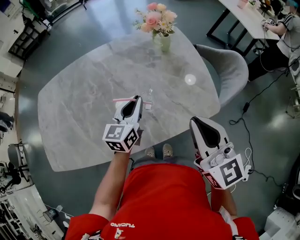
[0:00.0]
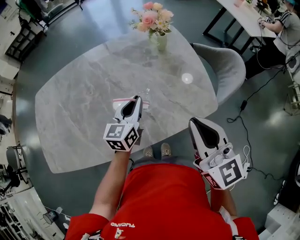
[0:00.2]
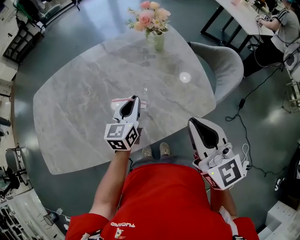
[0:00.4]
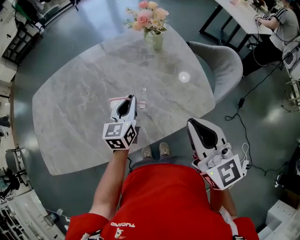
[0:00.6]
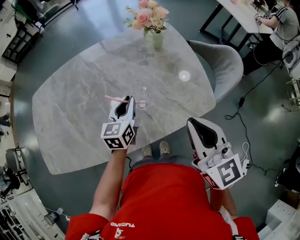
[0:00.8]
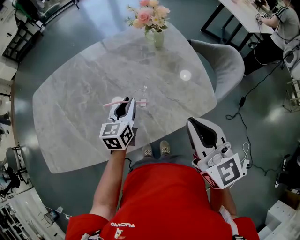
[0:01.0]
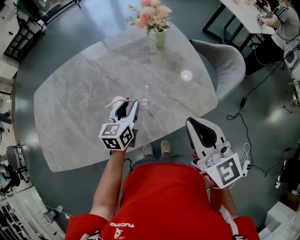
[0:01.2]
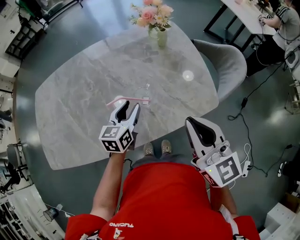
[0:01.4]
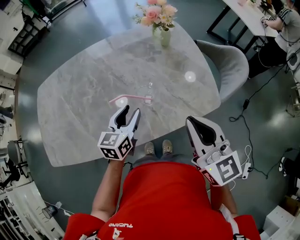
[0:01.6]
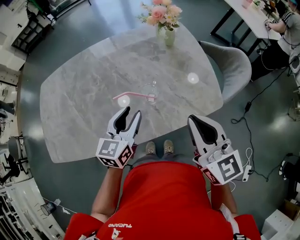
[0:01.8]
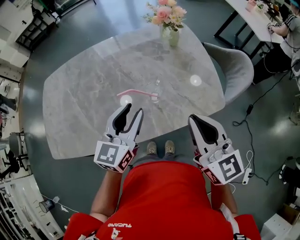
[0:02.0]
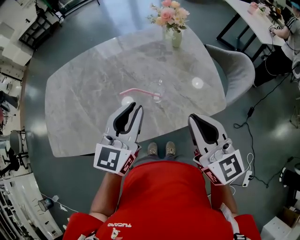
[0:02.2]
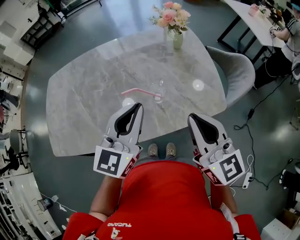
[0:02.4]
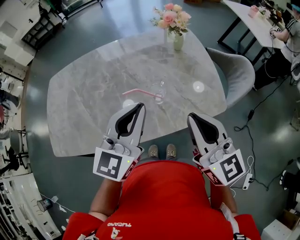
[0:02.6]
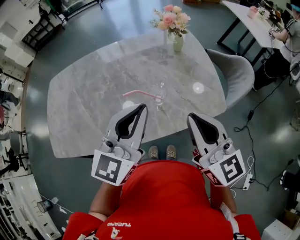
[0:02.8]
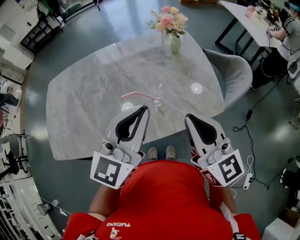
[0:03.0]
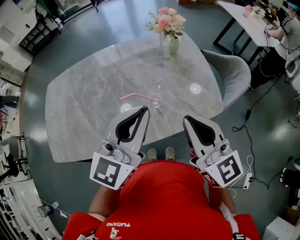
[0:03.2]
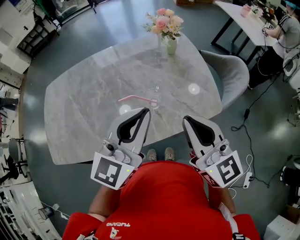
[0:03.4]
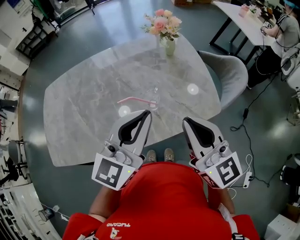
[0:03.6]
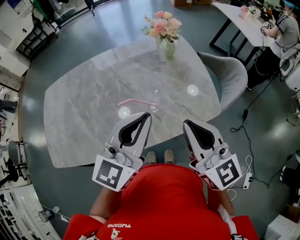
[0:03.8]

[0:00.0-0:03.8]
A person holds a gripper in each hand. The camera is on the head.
0:00.0 to 0:01.2: The left gripper opens up.
0:01.2 to 0:02.6: The right gripper changes place by about 5 cm; the left gripper travels upward and backward by some 25 cm, turns by about 30 degrees, and closes its fingers.
0:02.6 to 0:03.8: There are only small adjustments of the grippers.

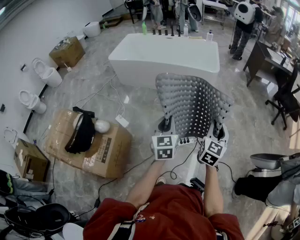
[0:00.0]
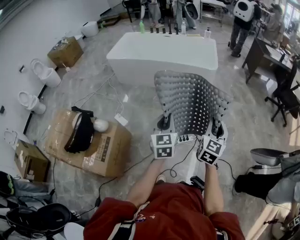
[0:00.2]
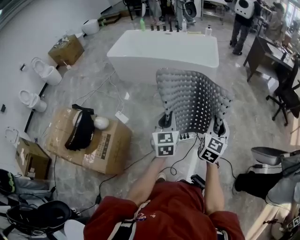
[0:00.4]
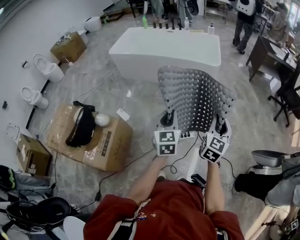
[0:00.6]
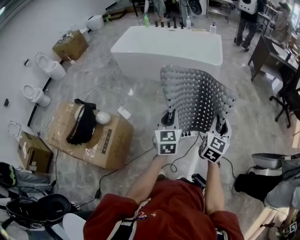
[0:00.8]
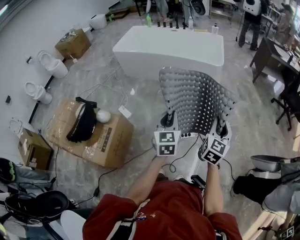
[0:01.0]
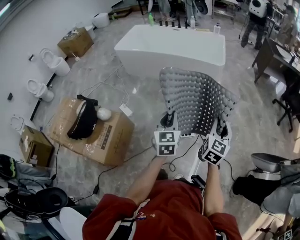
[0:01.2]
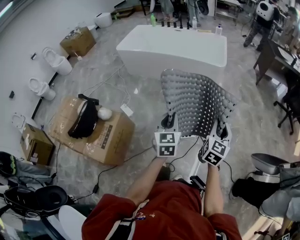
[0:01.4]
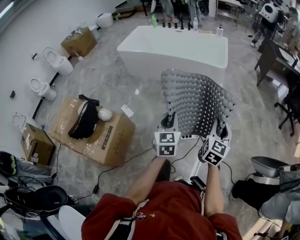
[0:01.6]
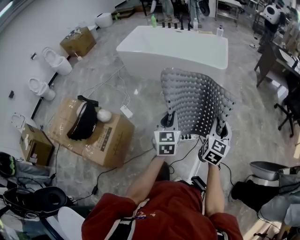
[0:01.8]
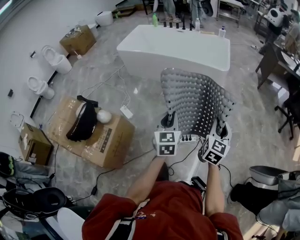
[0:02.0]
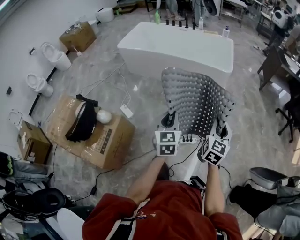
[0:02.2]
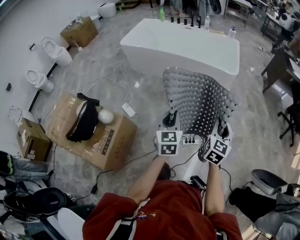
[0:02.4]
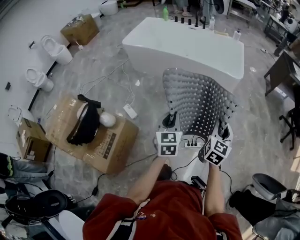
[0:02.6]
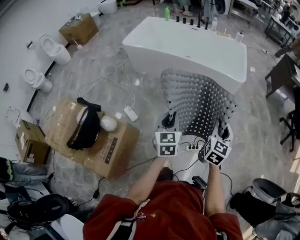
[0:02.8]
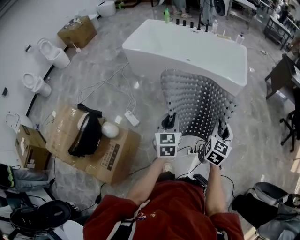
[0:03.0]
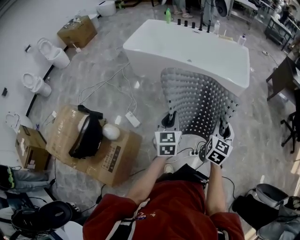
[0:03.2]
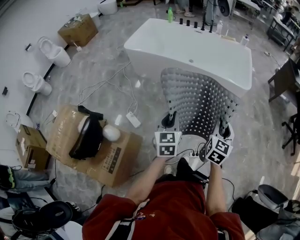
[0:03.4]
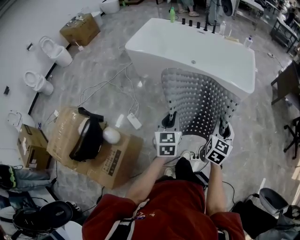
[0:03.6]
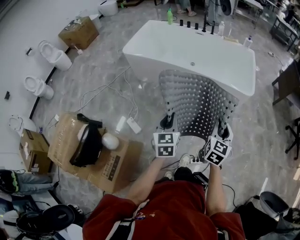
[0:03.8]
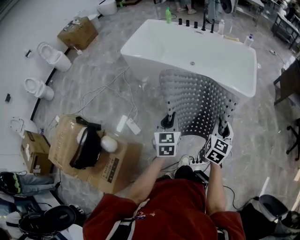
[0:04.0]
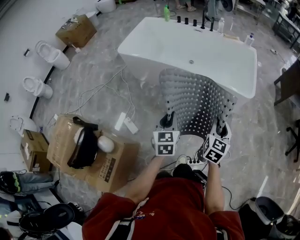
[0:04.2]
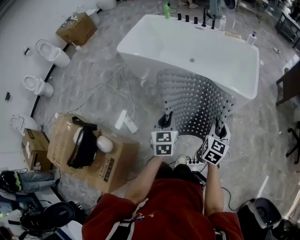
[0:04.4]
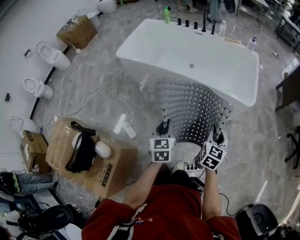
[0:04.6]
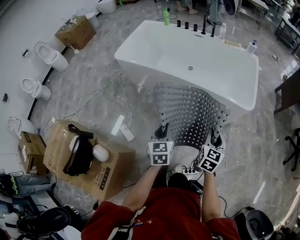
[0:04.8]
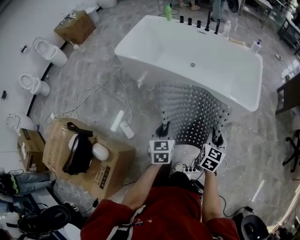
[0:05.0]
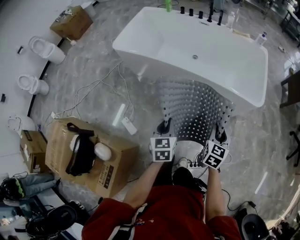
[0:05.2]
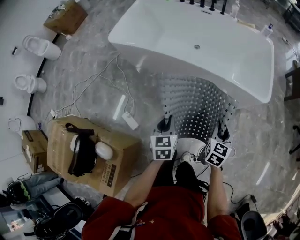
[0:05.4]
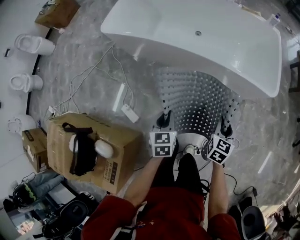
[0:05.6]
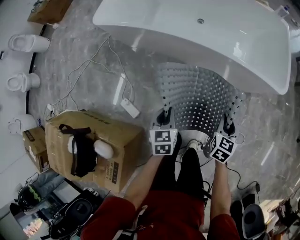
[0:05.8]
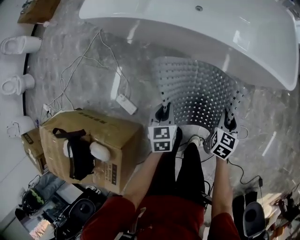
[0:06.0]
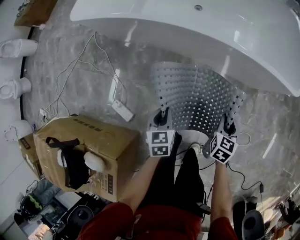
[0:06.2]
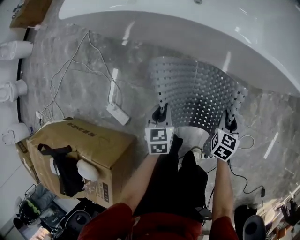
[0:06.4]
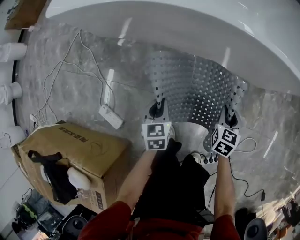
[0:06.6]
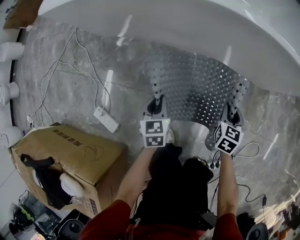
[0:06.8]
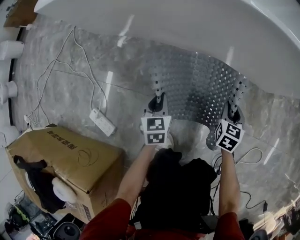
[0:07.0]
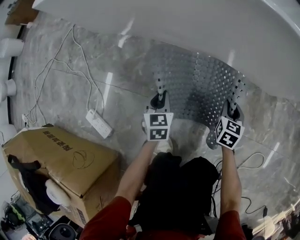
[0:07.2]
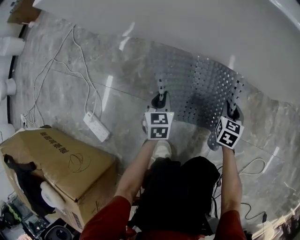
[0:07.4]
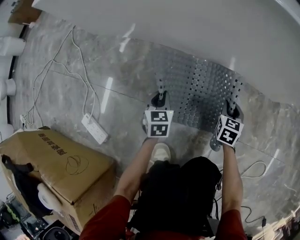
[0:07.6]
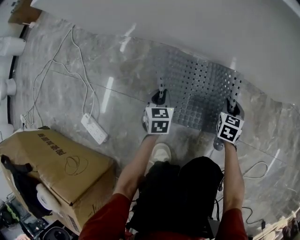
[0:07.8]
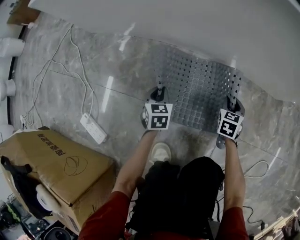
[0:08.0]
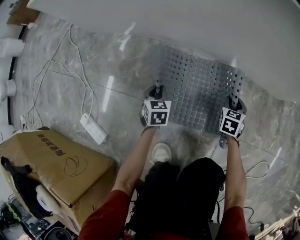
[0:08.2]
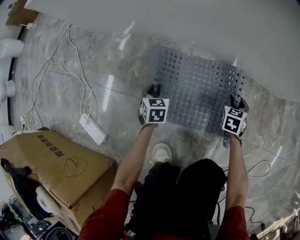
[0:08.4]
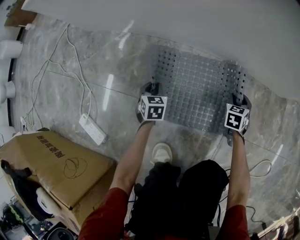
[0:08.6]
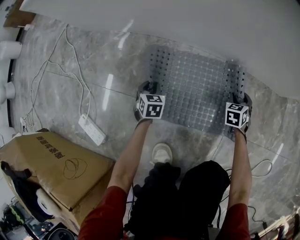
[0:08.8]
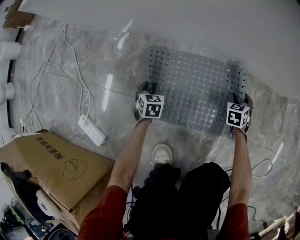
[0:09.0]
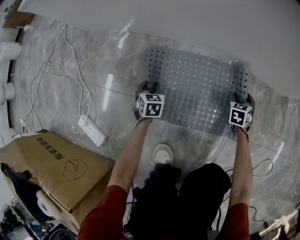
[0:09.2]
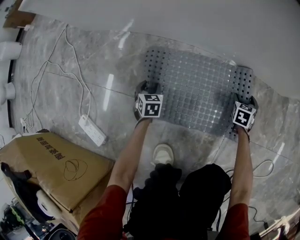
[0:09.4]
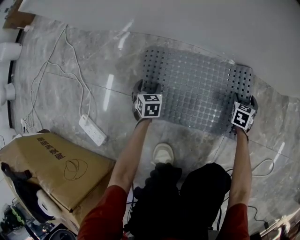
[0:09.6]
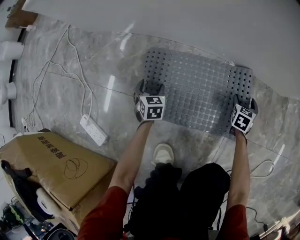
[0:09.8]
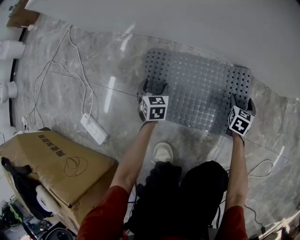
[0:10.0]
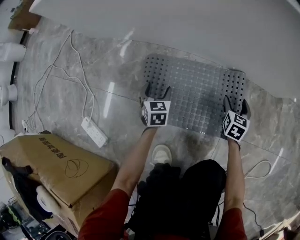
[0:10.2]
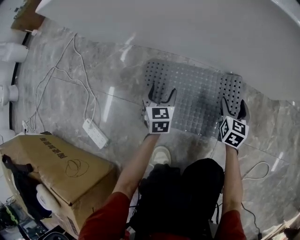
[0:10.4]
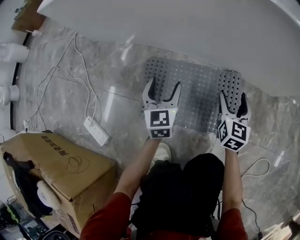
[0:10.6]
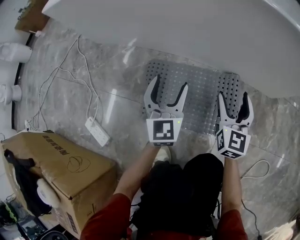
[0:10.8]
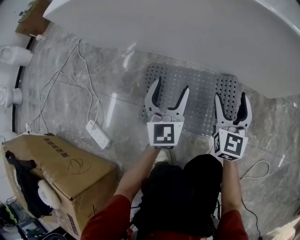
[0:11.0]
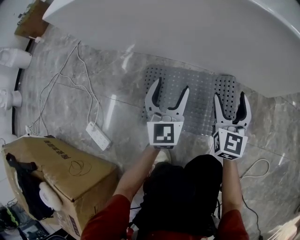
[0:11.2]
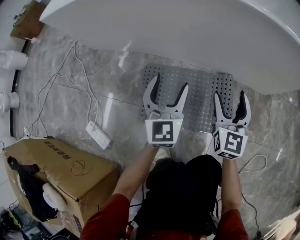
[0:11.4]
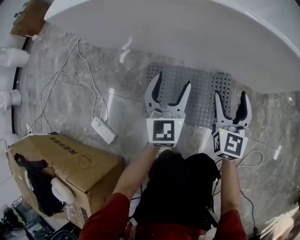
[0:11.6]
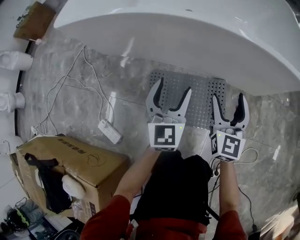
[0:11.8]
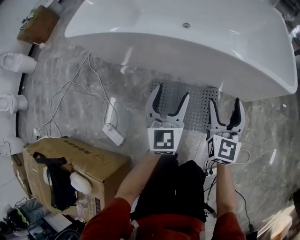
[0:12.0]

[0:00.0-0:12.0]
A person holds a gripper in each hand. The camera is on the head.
0:00.0 to 0:01.6: The two grippers go about 5 cm to the right.
0:01.6 to 0:03.0: The right gripper travels forward and to the left by approximately 30 cm; the left gripper travels to the left and forward by roughly 30 cm.
0:03.0 to 0:04.4: The two grippers go some 20 cm forward.
0:04.4 to 0:06.0: Both grippers travel together downward and forward, approximately 35 cm. The right gripper rotates roughly 20 degrees.
0:06.0 to 0:07.6: The grippers both shift downward by approximately 50 cm.
0:07.6 to 0:09.0: The left gripper shifts about 15 cm downward and to the left. The right gripper travels downward and to the right by some 10 cm.
0:09.0 to 0:10.4: The right gripper heads upward, covering some 15 cm, turns by some 30 degrees, and opens, while the left gripper moves upward and to the right, some 15 cm, and opens up.
0:10.4 to 0:12.0: Both grippers move upward, approximately 40 cm. The left gripper changes its angle by about 30 degrees, while the right gripper turns by about 30 degrees.

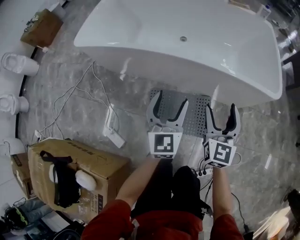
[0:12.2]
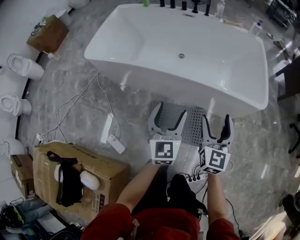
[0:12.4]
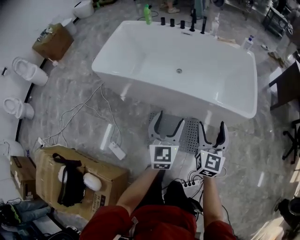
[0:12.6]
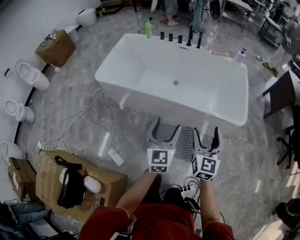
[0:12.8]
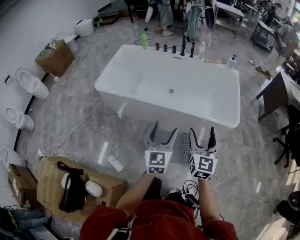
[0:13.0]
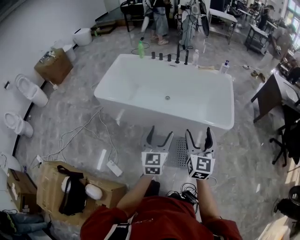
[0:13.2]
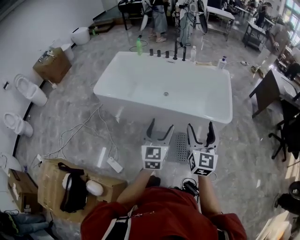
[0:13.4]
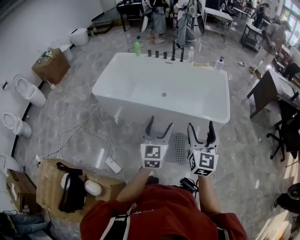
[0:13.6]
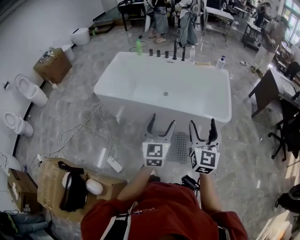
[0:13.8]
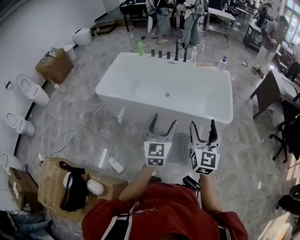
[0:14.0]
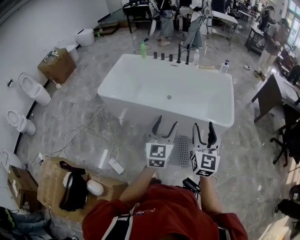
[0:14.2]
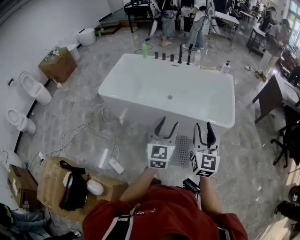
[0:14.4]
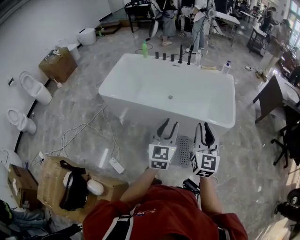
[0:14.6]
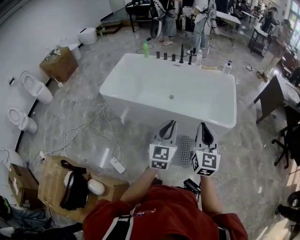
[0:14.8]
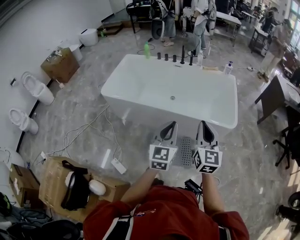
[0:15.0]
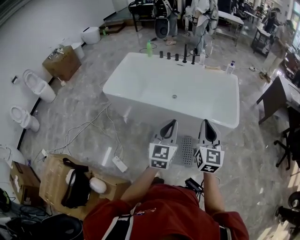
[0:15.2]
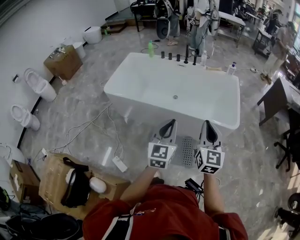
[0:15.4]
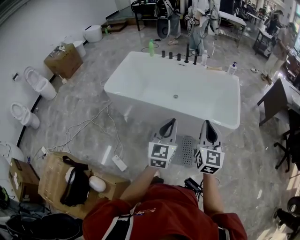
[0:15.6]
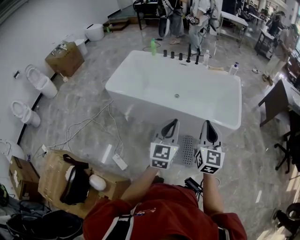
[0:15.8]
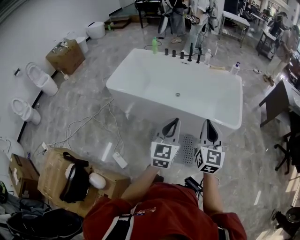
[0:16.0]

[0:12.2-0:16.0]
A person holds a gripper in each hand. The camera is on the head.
0:12.2 to 0:13.4: Both grippers travel together upward, about 35 cm.
0:13.4 to 0:14.8: The right gripper closes. Meanwhile the left gripper closes.
0:14.8 to 0:16.0: The grippers stay close to where they were, moving slightly.

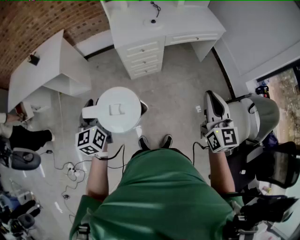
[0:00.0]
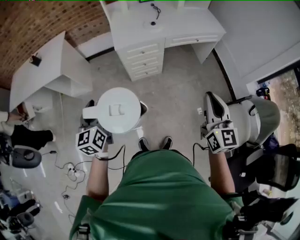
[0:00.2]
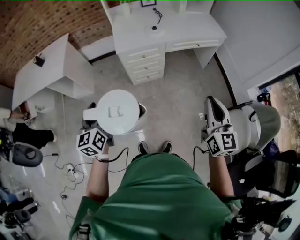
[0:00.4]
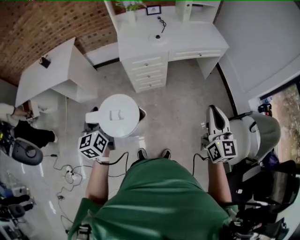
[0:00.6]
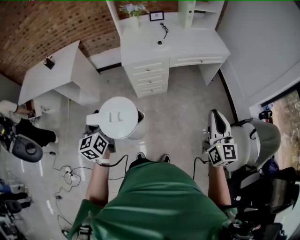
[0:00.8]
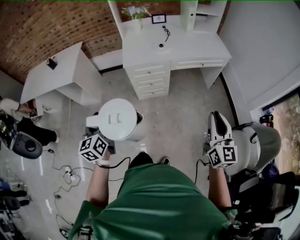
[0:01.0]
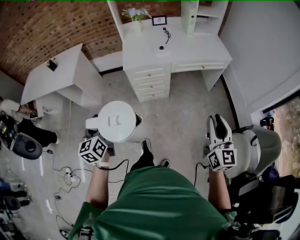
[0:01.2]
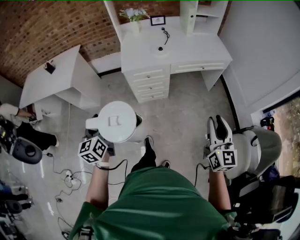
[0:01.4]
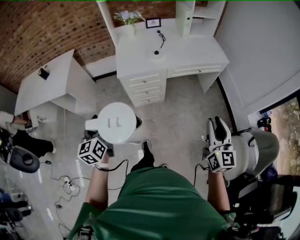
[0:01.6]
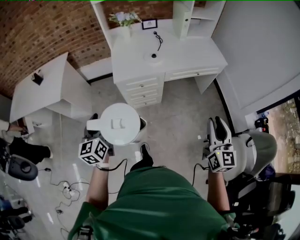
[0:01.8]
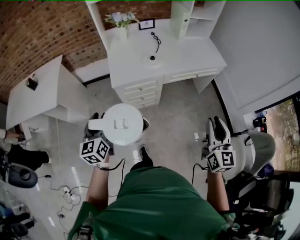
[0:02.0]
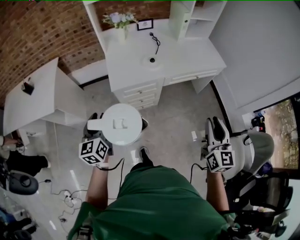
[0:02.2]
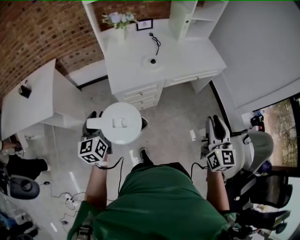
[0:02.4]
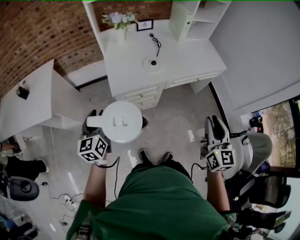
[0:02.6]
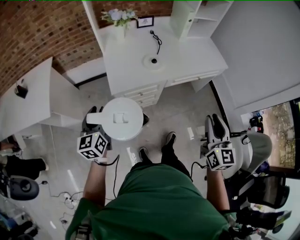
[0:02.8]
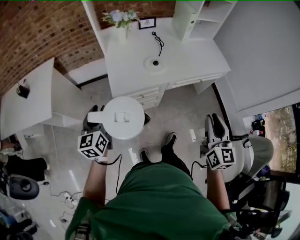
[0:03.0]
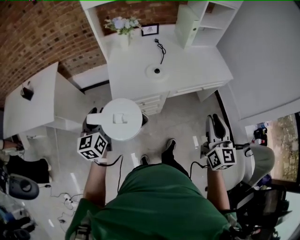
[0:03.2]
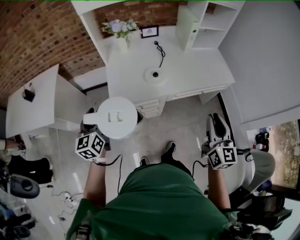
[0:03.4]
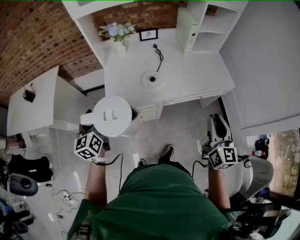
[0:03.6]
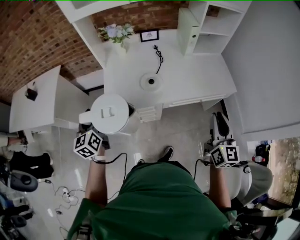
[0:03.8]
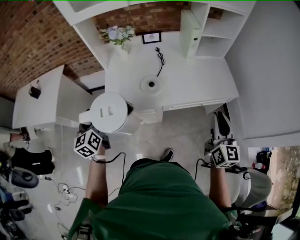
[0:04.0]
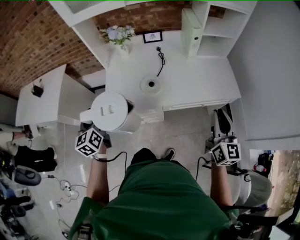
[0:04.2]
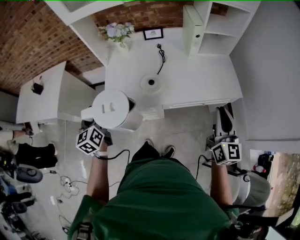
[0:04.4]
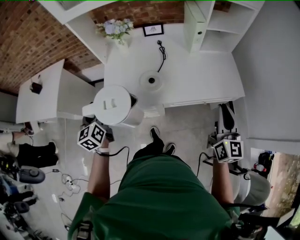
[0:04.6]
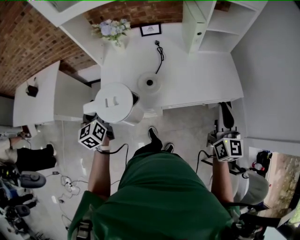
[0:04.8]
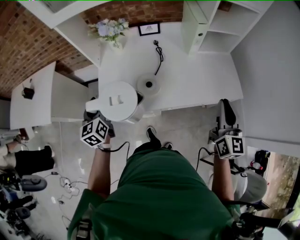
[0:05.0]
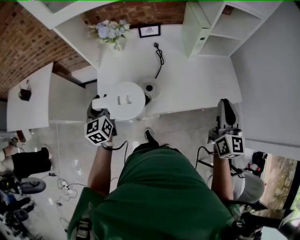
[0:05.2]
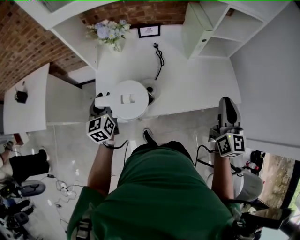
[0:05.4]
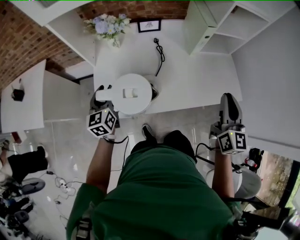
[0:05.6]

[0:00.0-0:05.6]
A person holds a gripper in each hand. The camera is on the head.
0:00.0 to 0:01.4: The right gripper travels to the right by approximately 10 cm, and opens. The left gripper shifts approximately 5 cm to the right.
0:01.4 to 0:02.8: The left gripper travels forward by some 30 cm. The right gripper travels forward and to the left by some 25 cm.
0:02.8 to 0:04.2: The left gripper is displaced to the right and forward by approximately 15 cm, and changes its angle by approximately 20 degrees. The right gripper shifts some 30 cm to the right and forward.
0:04.2 to 0:05.6: The left gripper is displaced forward and downward by some 25 cm, while the right gripper shifts roughly 20 cm forward.
